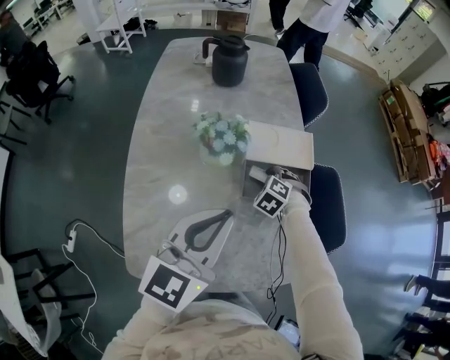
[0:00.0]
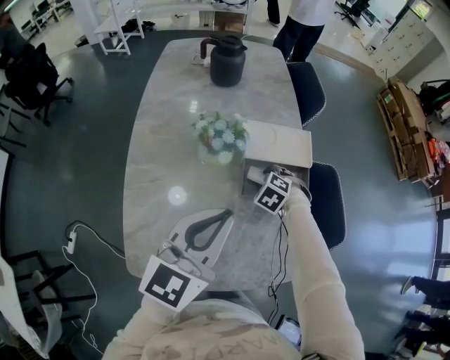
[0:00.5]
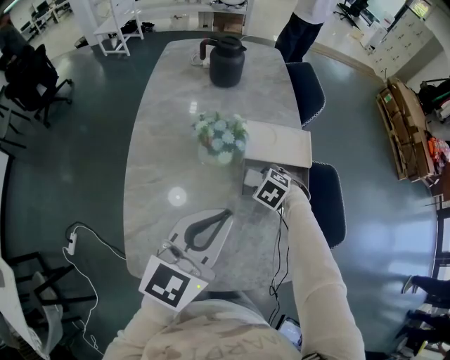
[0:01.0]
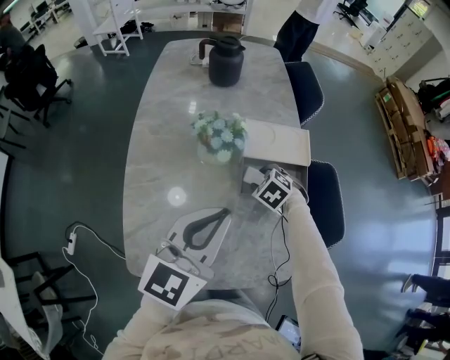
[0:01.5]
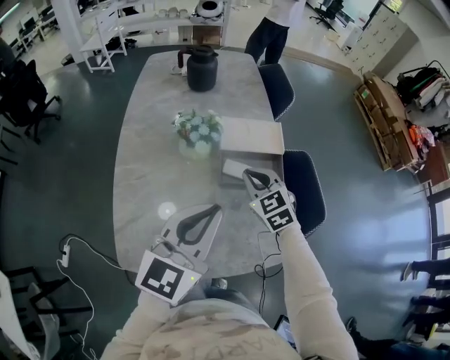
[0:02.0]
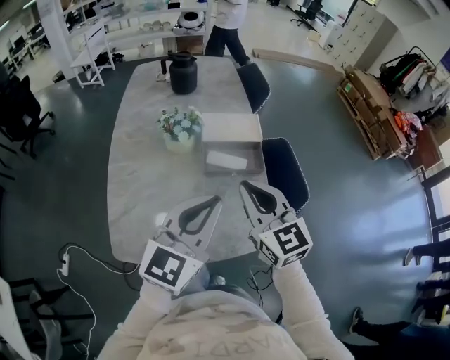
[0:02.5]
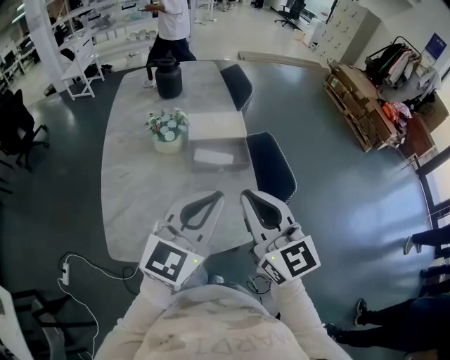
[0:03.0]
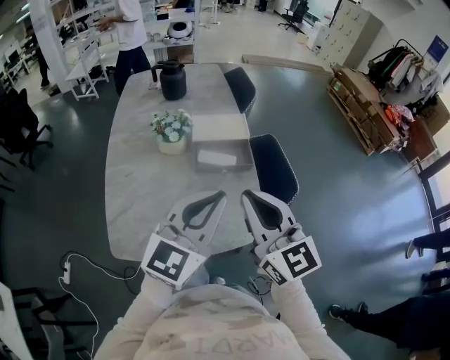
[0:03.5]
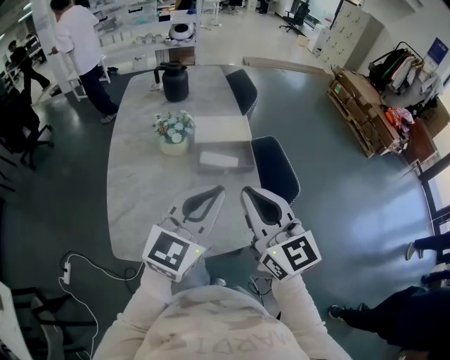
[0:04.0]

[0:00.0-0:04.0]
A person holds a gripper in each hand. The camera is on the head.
0:00.0 to 0:02.0: The right gripper goes approximately 20 cm upward and backward, tips its fingers upward by roughly 30 degrees, and closes. Meanwhile the left gripper goes roughly 5 cm backward.
0:02.0 to 0:04.0: The left gripper goes about 10 cm to the right and backward. Meanwhile the right gripper heads backward and upward, covering some 30 cm, and angles its fingers upward, by about 30 degrees.

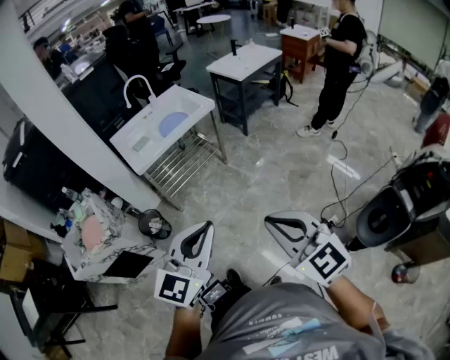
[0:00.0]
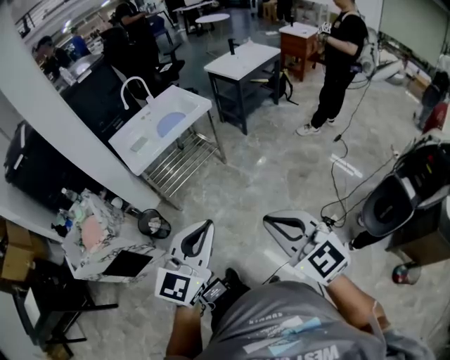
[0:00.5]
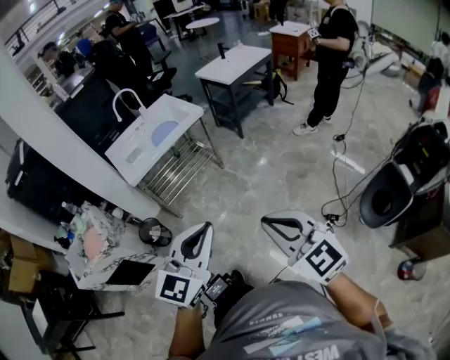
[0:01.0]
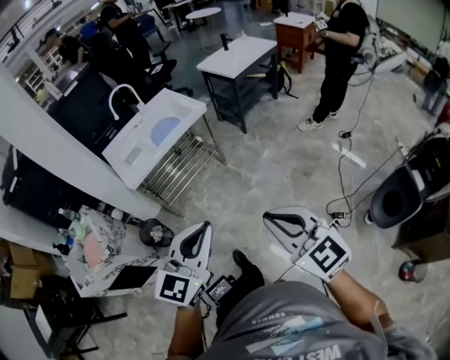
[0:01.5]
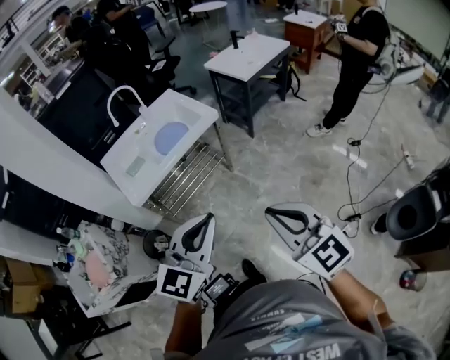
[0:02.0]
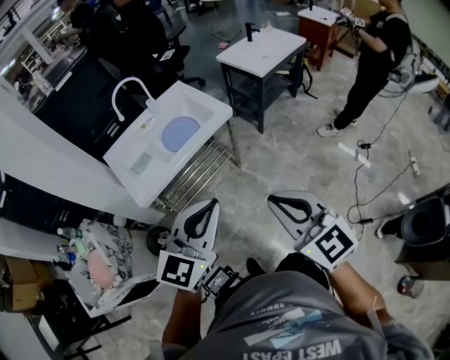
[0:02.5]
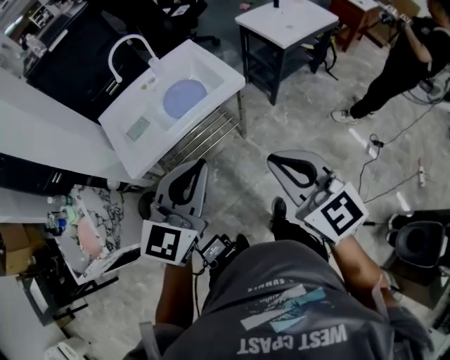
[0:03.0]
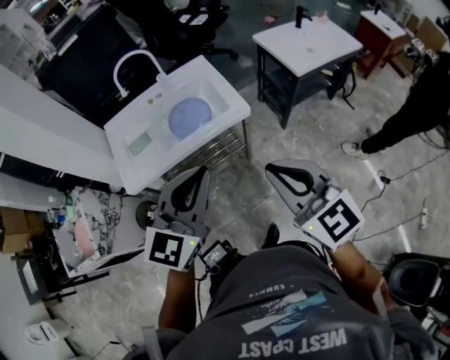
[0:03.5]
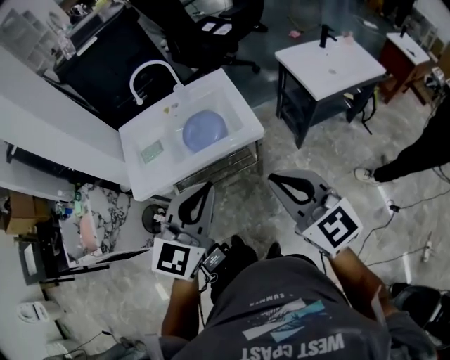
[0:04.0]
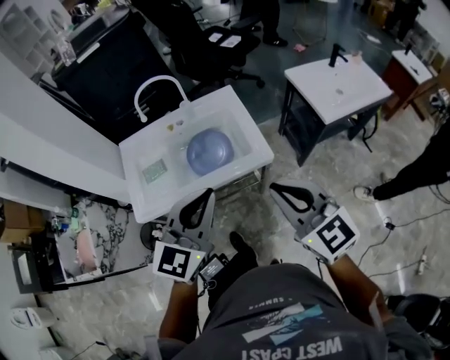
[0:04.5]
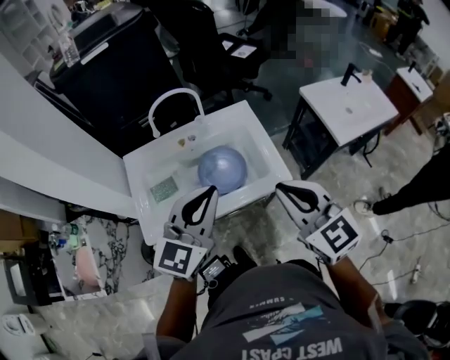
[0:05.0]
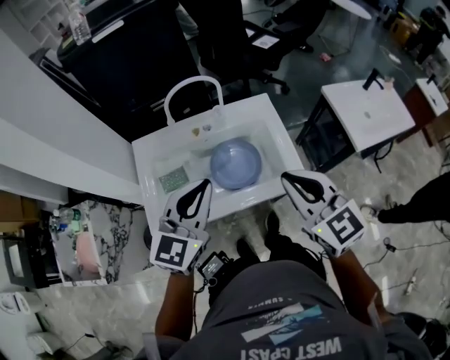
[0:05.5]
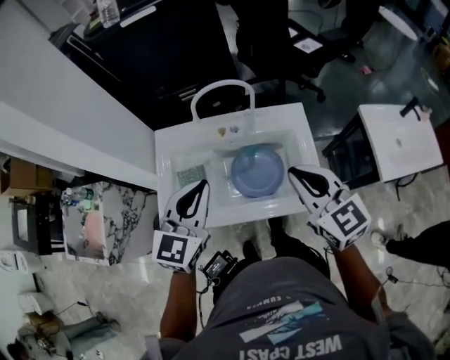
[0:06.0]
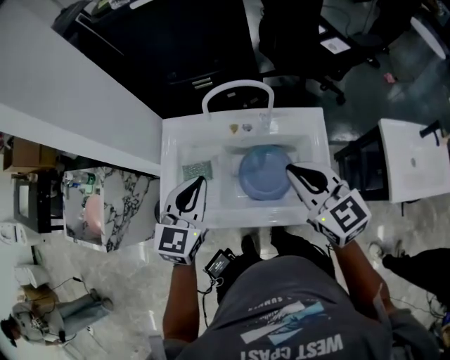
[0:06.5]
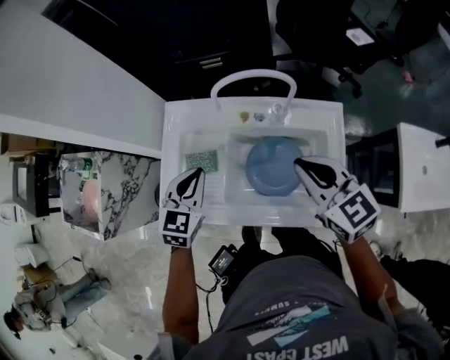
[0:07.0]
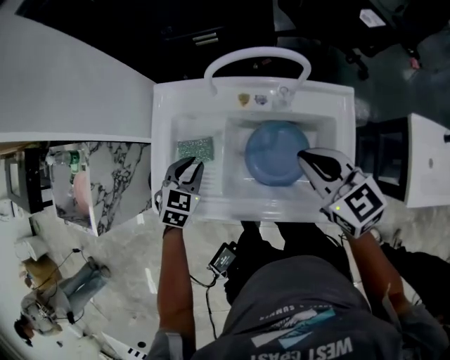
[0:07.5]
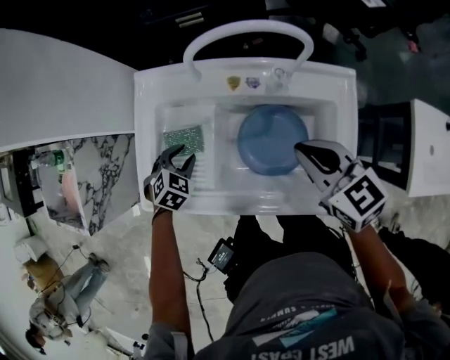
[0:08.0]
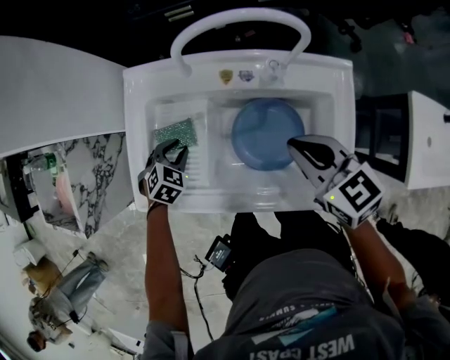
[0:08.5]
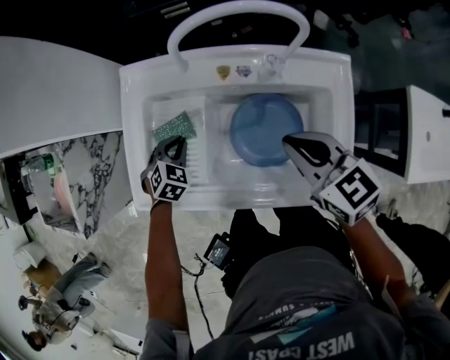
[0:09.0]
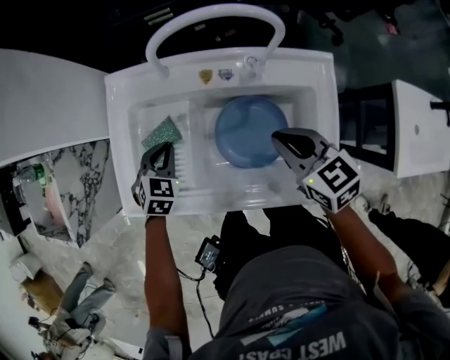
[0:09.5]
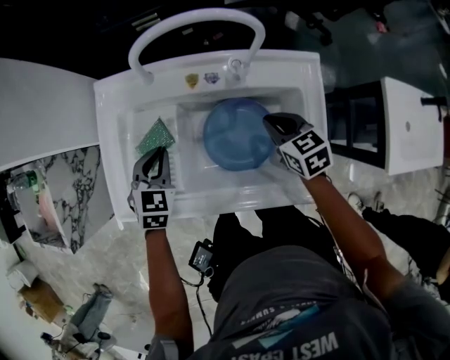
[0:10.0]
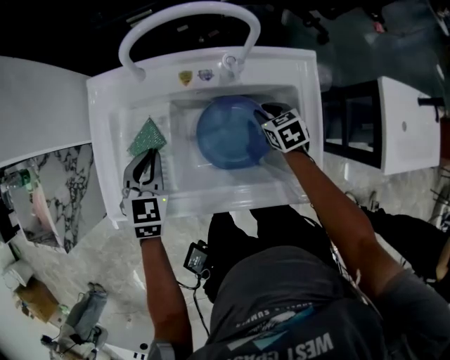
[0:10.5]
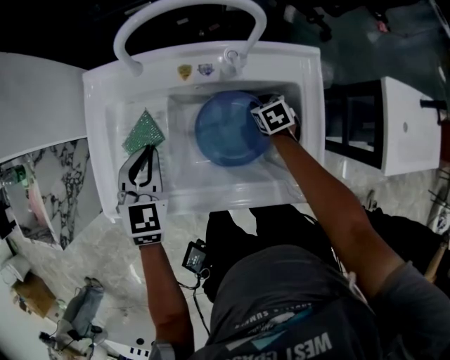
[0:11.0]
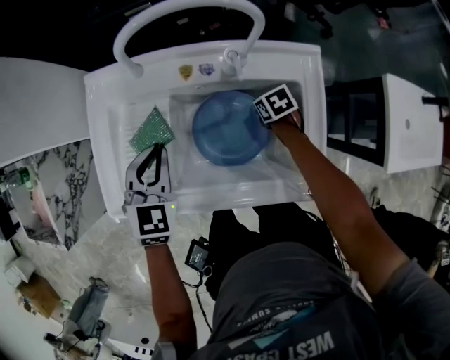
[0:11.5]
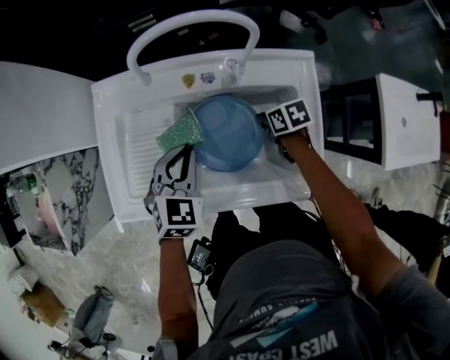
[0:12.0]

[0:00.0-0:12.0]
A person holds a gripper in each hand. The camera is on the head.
0:00.0 to 0:02.0: The two grippers go approximately 25 cm forward.
0:02.0 to 0:04.0: The right gripper ends up approximately 40 cm from where it was, and turns by approximately 20 degrees; the left gripper ends up about 35 cm from where it was, and changes its angle by some 30 degrees.
0:04.0 to 0:06.0: The left gripper moves forward and to the left, some 35 cm, and swivels some 20 degrees, while the right gripper goes about 35 cm forward.
0:06.0 to 0:08.0: The right gripper goes about 20 cm downward and forward, and turns by about 30 degrees. Meanwhile the left gripper shifts approximately 40 cm downward, angles its fingers downward, by about 50 degrees, and opens up.
0:08.0 to 0:10.0: The left gripper moves upward and to the right, roughly 10 cm, changes its angle by about 20 degrees, and closes up, while the right gripper travels downward and to the right by approximately 15 cm.
0:10.0 to 0:12.0: The right gripper shifts roughly 10 cm downward, and turns by roughly 30 degrees. Meanwhile the left gripper shifts roughly 10 cm to the right.

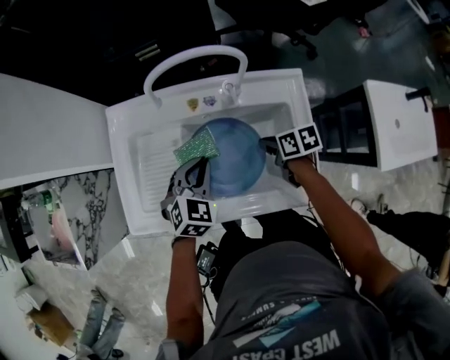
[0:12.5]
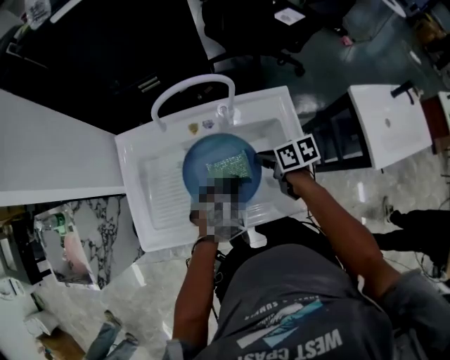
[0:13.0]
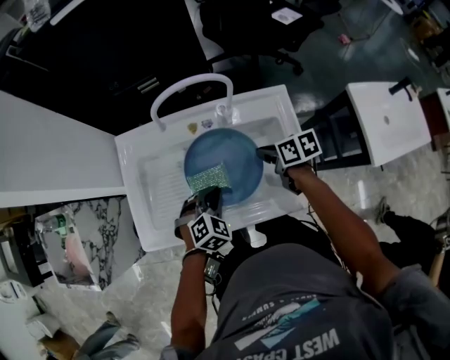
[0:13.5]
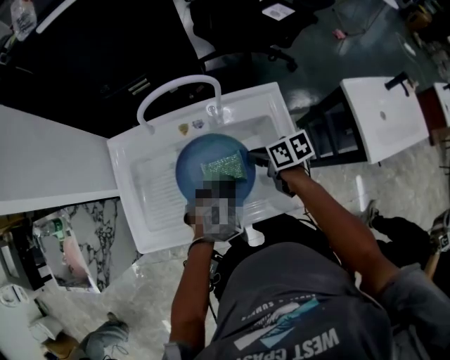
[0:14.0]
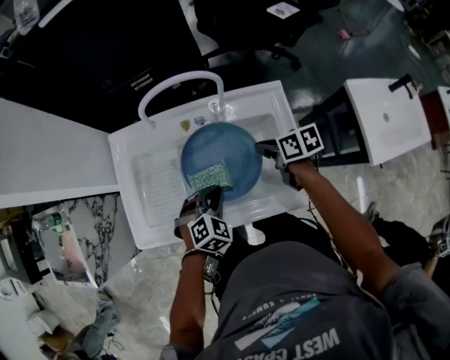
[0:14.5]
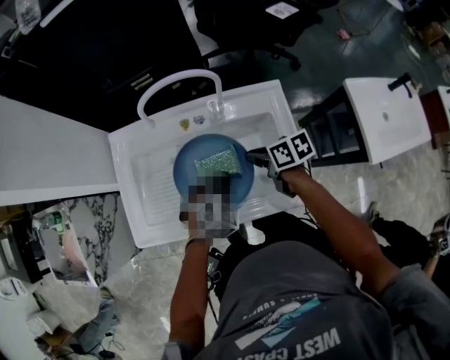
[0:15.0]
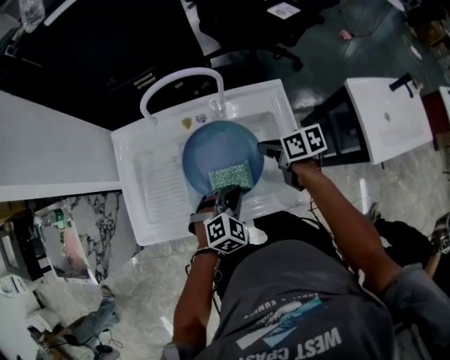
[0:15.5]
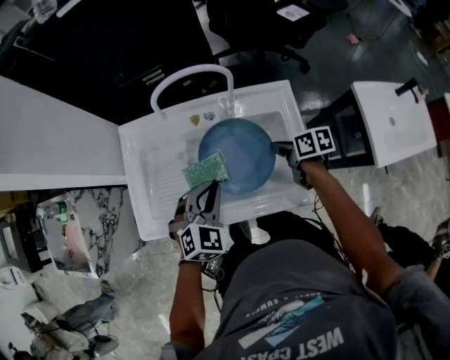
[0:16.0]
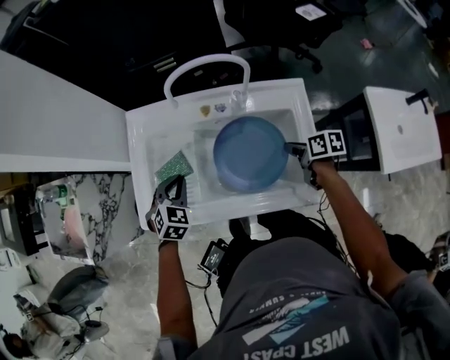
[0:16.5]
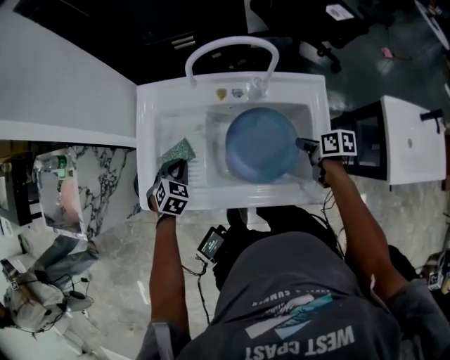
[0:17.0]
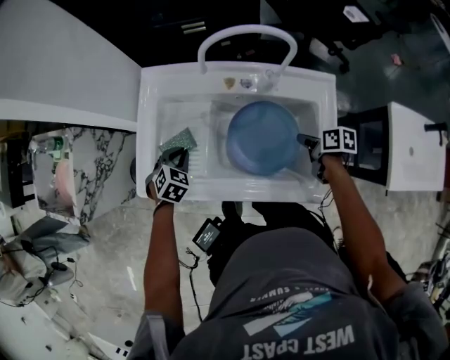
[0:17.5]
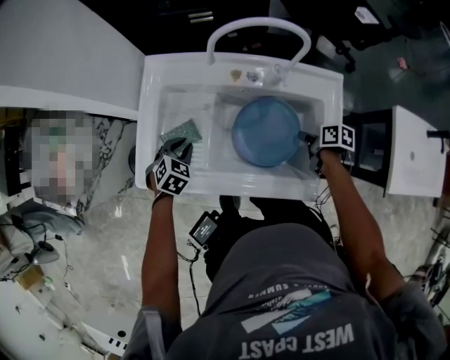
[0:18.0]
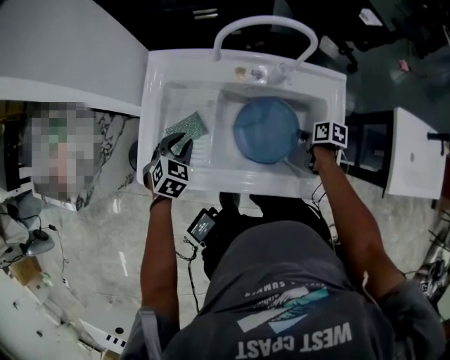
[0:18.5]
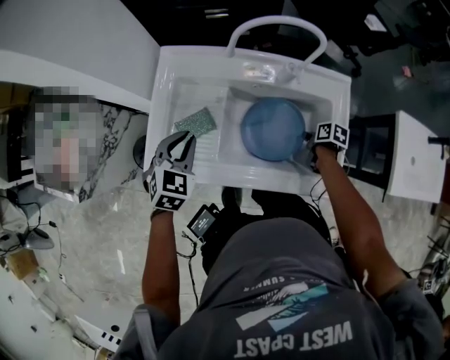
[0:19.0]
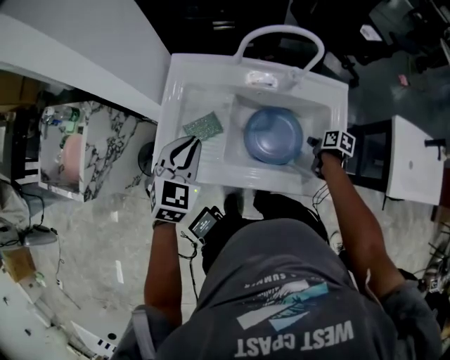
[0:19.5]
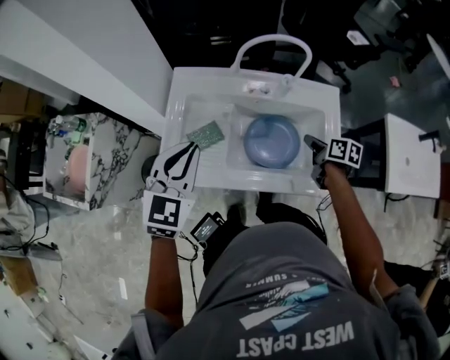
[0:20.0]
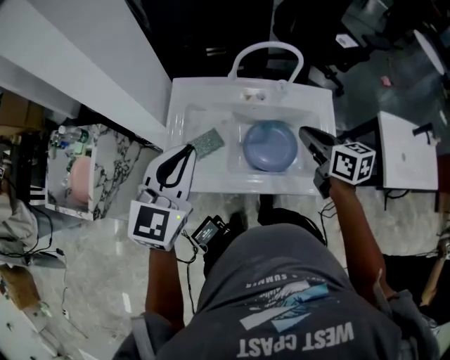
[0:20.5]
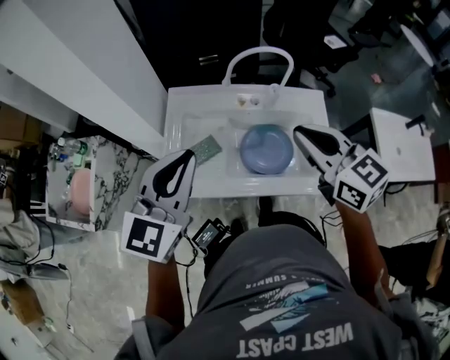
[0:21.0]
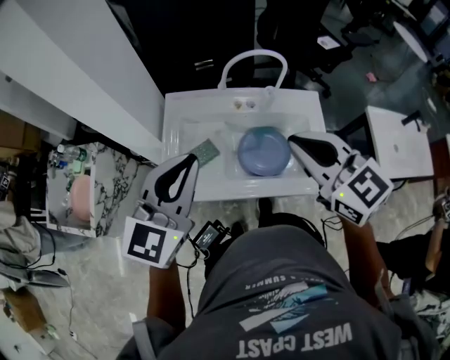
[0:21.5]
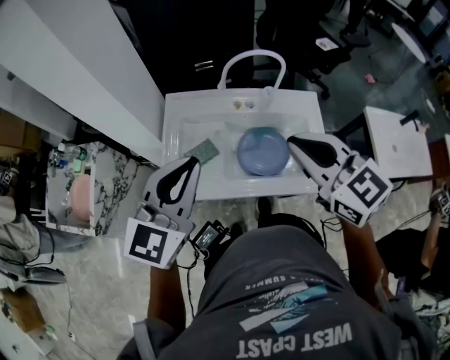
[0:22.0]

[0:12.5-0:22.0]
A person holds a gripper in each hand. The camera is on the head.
0:12.5 to 0:14.5: The right gripper is displaced upward by about 5 cm; the left gripper goes left and right, some 10 cm each way, reversing 3 times.
0:14.5 to 0:16.5: The left gripper travels to the left by approximately 15 cm, and swivels some 20 degrees. The right gripper ends up approximately 5 cm from where it was.
0:16.5 to 0:18.0: The grippers both shift downward by about 10 cm.
0:18.0 to 0:20.0: The right gripper travels upward by about 15 cm; the left gripper travels upward by approximately 30 cm, and tips its fingers upward by approximately 40 degrees.
0:20.0 to 0:22.0: The left gripper heads upward and backward, covering some 15 cm, and turns by approximately 20 degrees, while the right gripper travels upward and to the left by some 35 cm, and twists about 60 degrees counterclockwise, seen from behind.

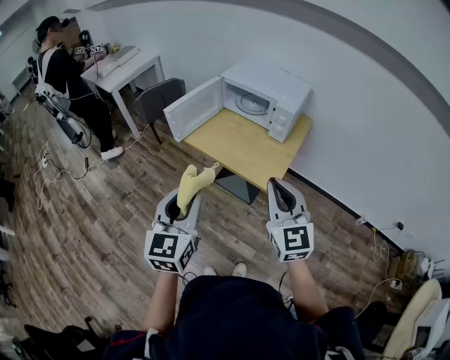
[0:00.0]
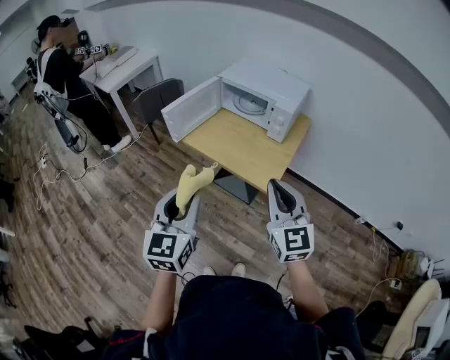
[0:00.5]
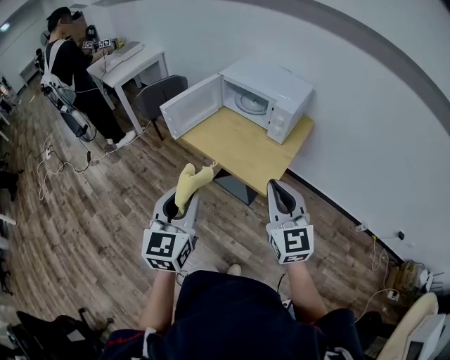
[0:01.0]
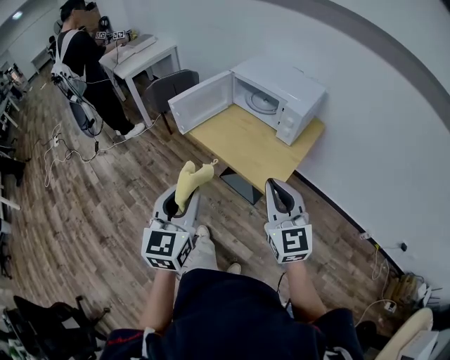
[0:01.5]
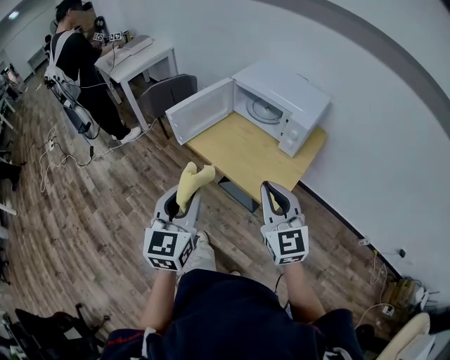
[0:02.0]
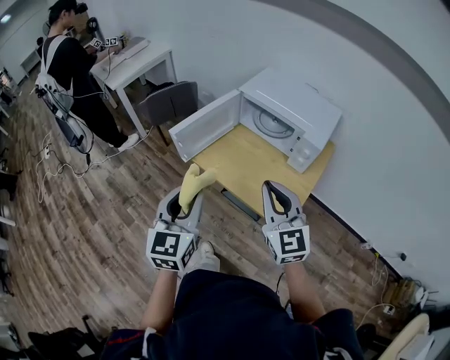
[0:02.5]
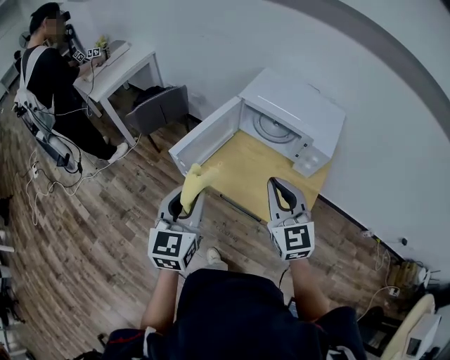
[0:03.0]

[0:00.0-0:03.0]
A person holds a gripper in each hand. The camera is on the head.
0:00.0 to 0:01.5: The grippers stay close to where they were, moving slightly.
0:01.5 to 0:03.0: The left gripper shifts some 30 cm forward. Meanwhile the right gripper goes approximately 30 cm forward and to the left.
